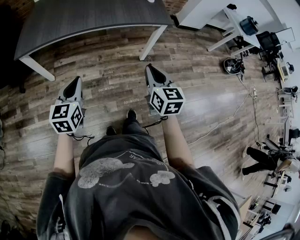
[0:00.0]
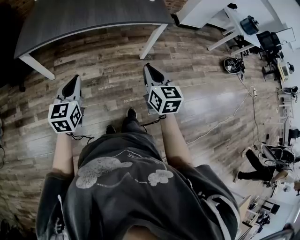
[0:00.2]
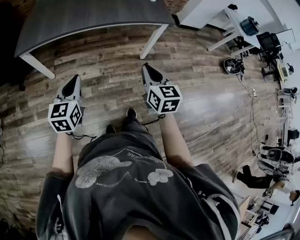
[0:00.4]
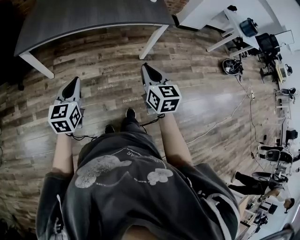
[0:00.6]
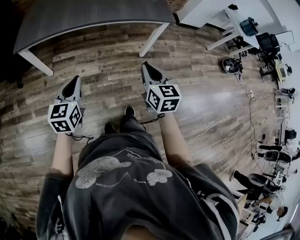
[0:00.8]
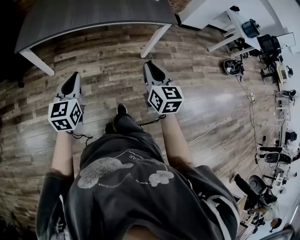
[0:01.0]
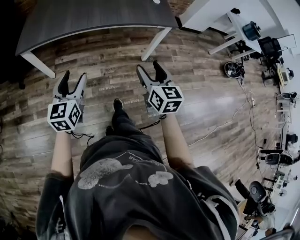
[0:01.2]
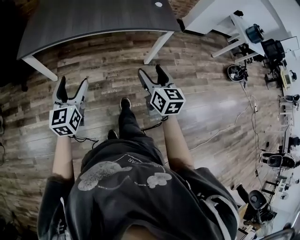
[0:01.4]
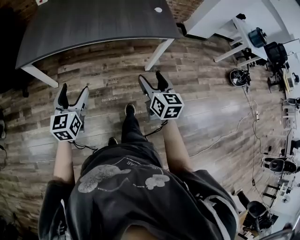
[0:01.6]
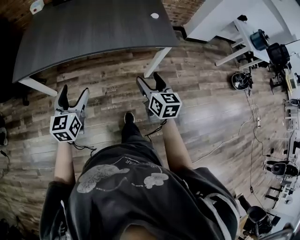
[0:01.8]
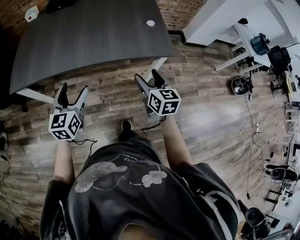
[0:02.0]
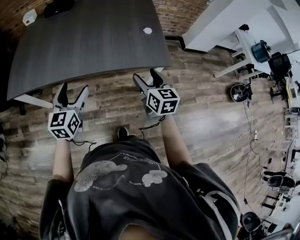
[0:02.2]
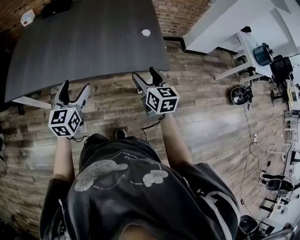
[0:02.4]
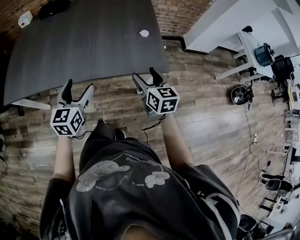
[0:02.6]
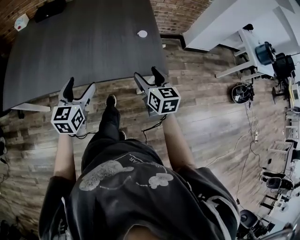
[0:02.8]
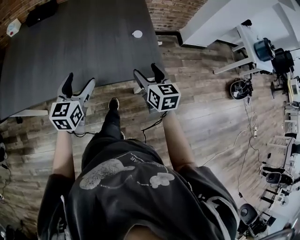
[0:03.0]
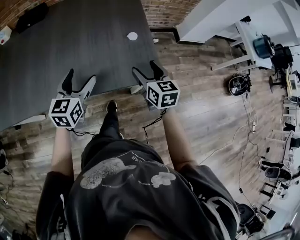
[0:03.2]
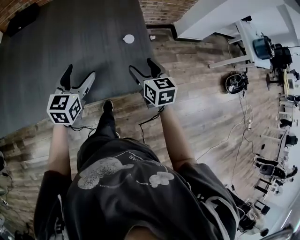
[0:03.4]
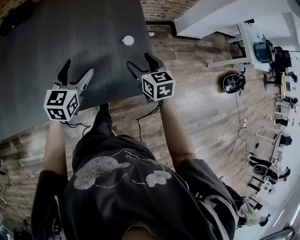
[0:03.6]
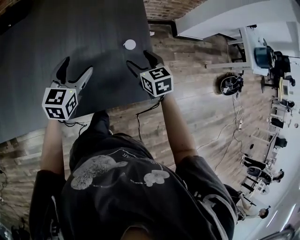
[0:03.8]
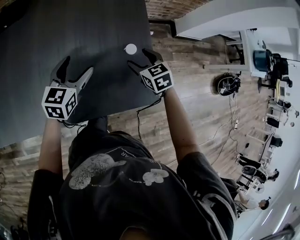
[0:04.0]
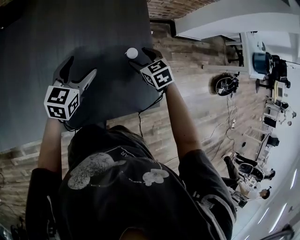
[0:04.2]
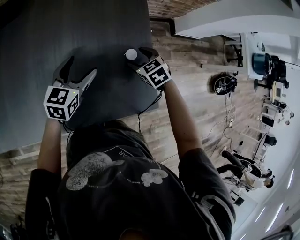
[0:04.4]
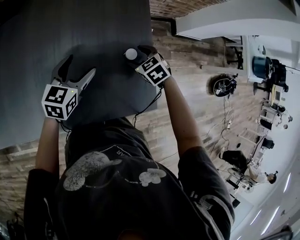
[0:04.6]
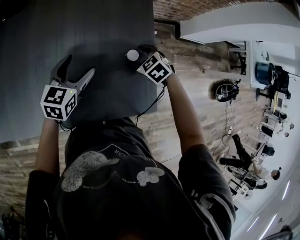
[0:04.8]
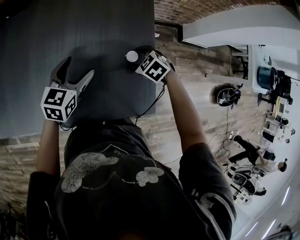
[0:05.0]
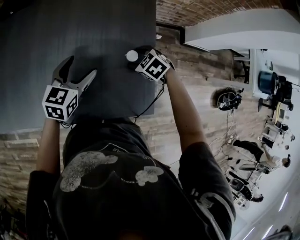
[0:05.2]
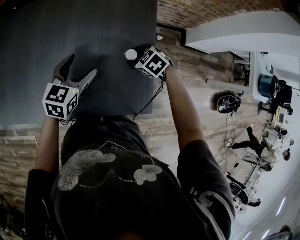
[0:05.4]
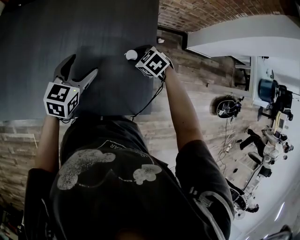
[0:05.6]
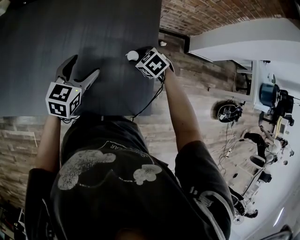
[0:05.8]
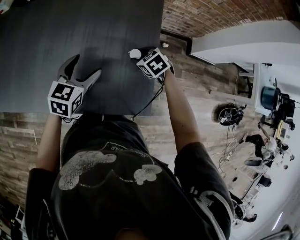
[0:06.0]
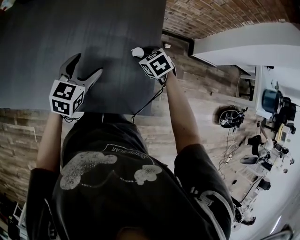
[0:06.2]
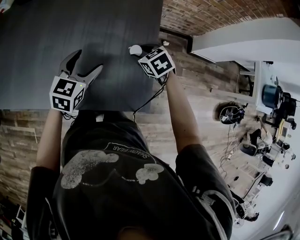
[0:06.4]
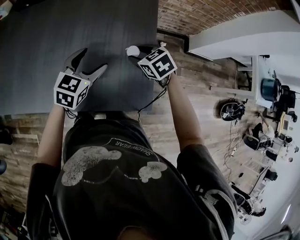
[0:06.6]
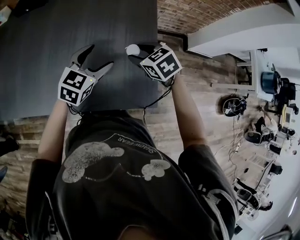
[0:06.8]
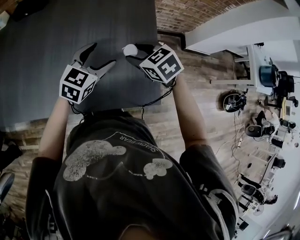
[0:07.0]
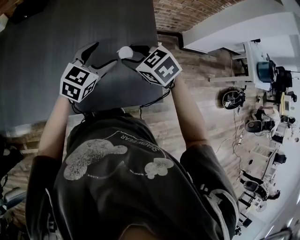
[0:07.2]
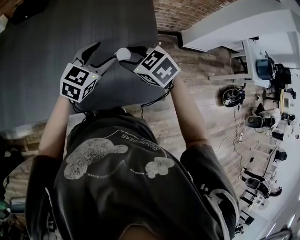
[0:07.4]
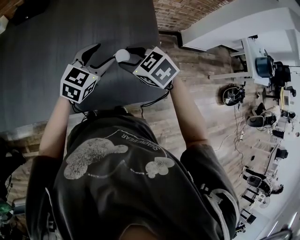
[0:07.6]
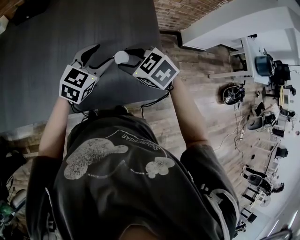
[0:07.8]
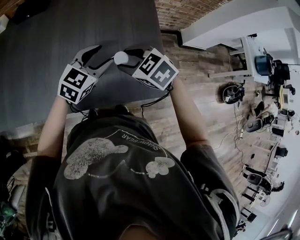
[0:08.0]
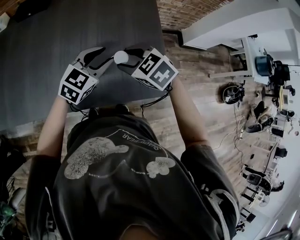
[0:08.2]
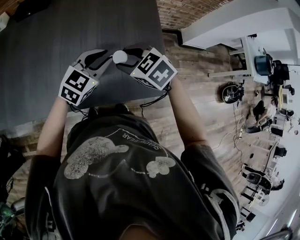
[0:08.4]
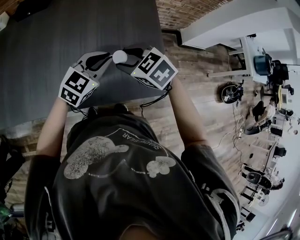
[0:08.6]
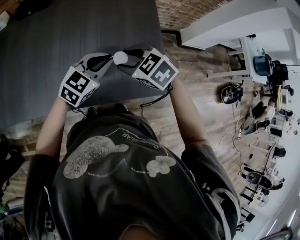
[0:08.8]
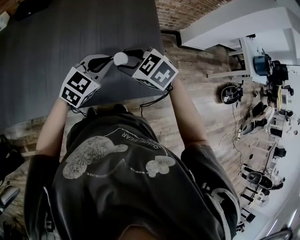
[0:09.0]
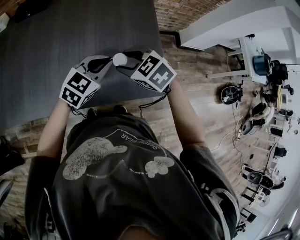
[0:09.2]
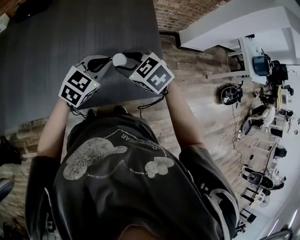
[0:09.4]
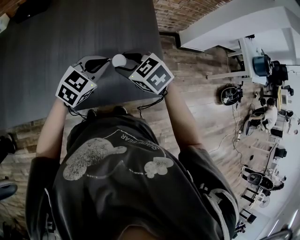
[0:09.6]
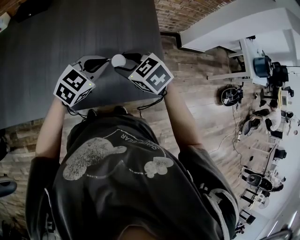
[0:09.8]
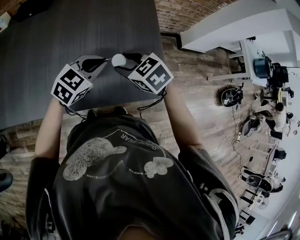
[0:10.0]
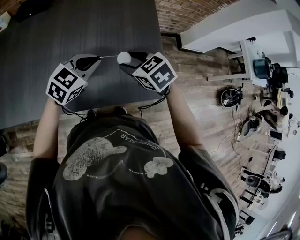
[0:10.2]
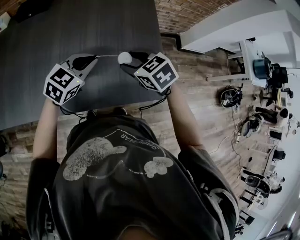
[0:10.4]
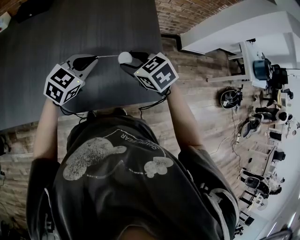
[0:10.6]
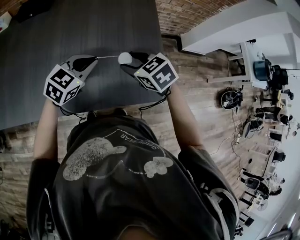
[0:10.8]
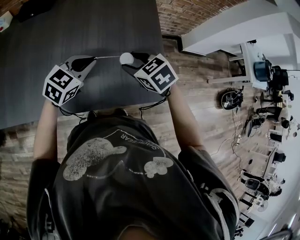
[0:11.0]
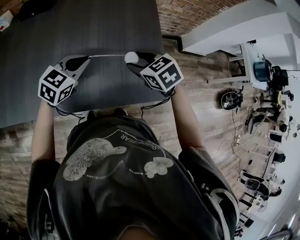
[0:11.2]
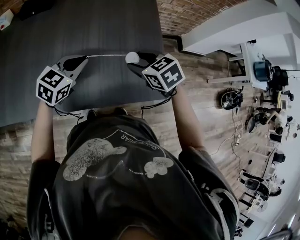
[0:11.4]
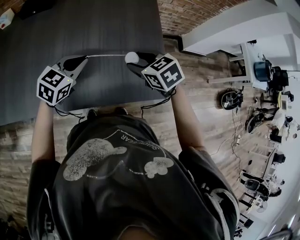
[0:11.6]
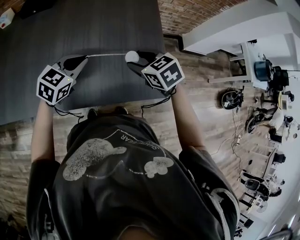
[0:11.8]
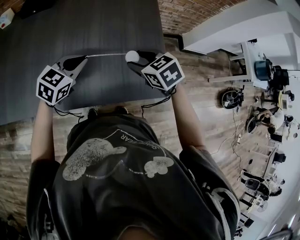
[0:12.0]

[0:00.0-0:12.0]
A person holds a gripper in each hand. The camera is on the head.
0:00.0 to 0:01.6: Both grippers move forward, approximately 10 cm. The right gripper opens up. Meanwhile the left gripper opens its fingers.
0:01.6 to 0:03.0: Both grippers move forward and to the right, about 40 cm.
0:03.0 to 0:04.4: The left gripper is displaced forward by roughly 30 cm. The right gripper travels forward and downward by roughly 35 cm, and angles its fingers downward, by some 30 degrees.
0:04.4 to 0:06.0: The left gripper is displaced backward by some 5 cm.
0:06.0 to 0:07.6: The left gripper is displaced upward by about 5 cm, and swivels approximately 20 degrees. The right gripper travels upward, to the left and backward by roughly 25 cm.
0:07.6 to 0:09.0: The left gripper heads backward, covering some 5 cm, and closes its fingers.
0:09.0 to 0:10.4: The left gripper is displaced to the left by some 5 cm.
0:10.4 to 0:12.0: There are only small adjustments of the grippers.

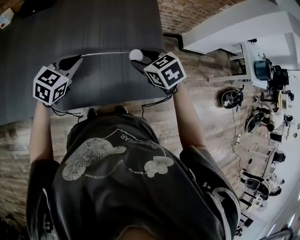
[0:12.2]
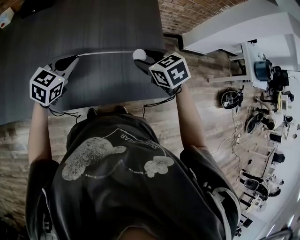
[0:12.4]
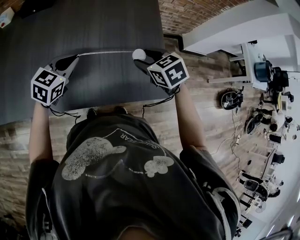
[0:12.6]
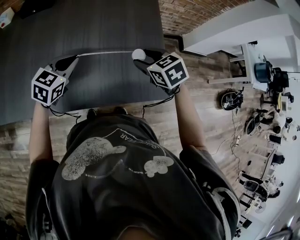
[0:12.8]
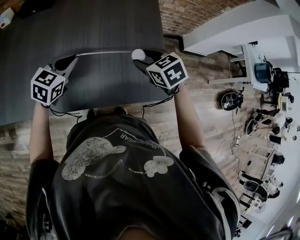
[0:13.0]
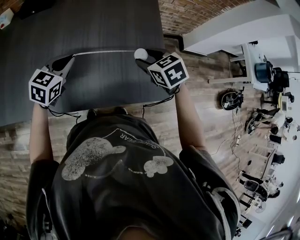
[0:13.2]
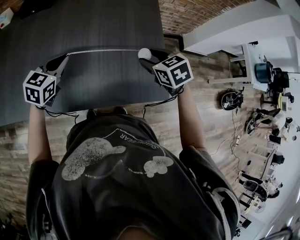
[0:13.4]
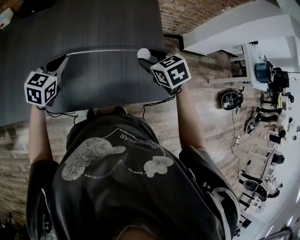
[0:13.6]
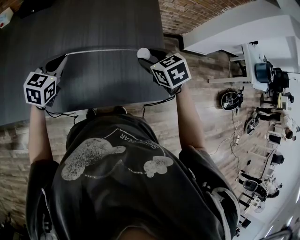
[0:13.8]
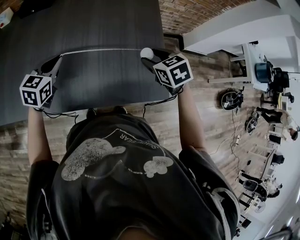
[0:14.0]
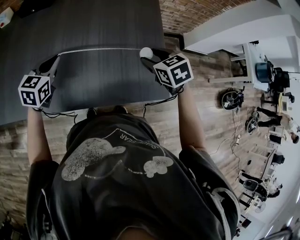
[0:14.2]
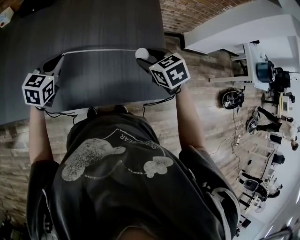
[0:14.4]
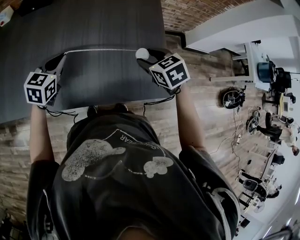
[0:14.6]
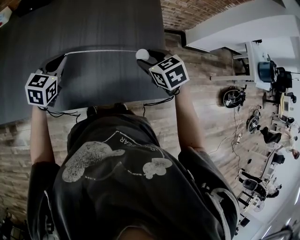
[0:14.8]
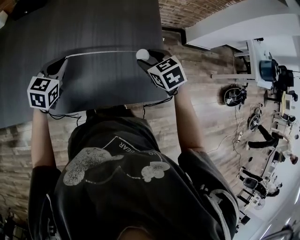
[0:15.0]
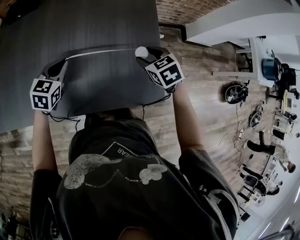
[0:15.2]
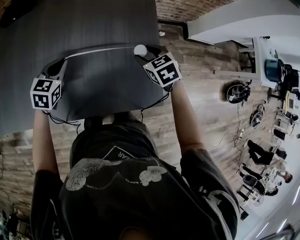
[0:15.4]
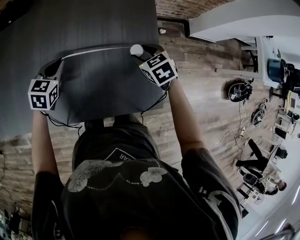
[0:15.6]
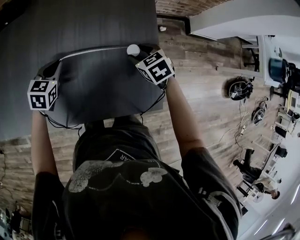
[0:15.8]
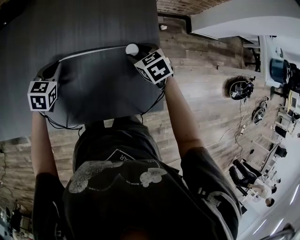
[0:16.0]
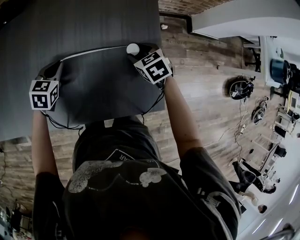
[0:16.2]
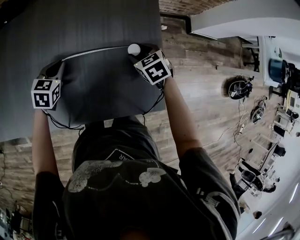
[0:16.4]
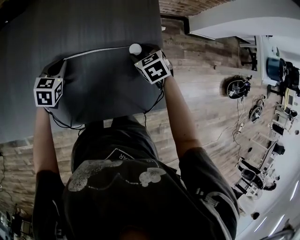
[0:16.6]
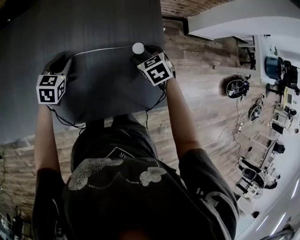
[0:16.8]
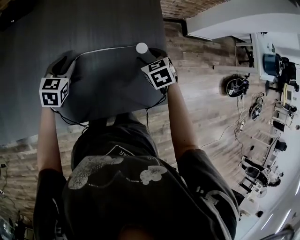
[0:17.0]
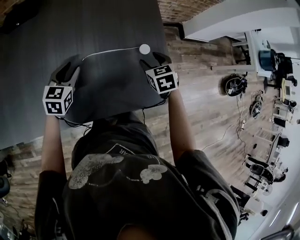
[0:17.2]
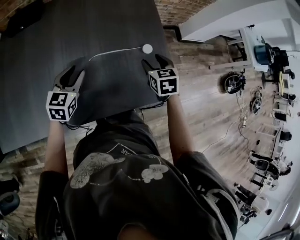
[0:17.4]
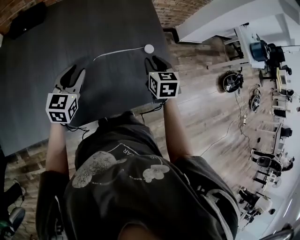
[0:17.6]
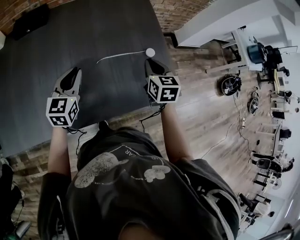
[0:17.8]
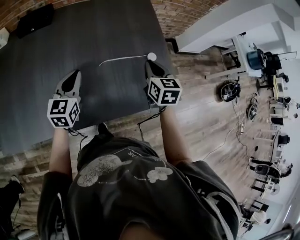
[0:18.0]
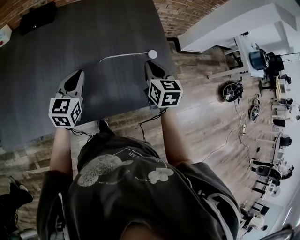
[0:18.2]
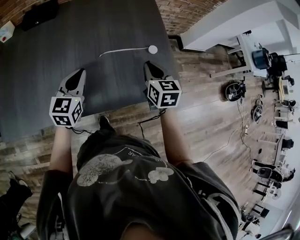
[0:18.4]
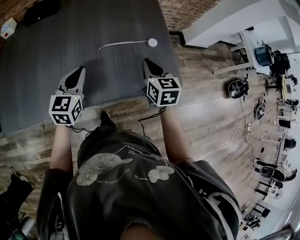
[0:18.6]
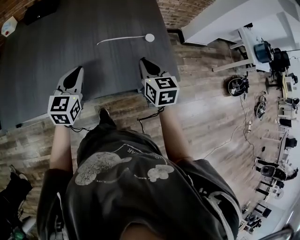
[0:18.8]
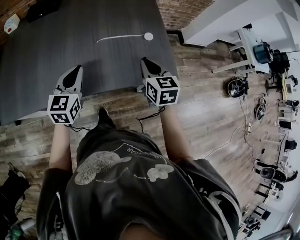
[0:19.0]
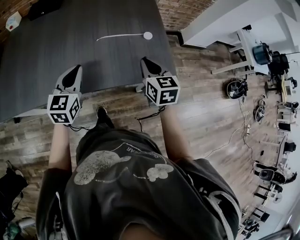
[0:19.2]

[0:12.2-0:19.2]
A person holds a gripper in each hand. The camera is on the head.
0:12.2 to 0:13.6: The left gripper goes roughly 5 cm to the left.
0:13.6 to 0:15.0: The right gripper moves some 5 cm.
0:15.0 to 0:16.4: The grippers both shift downward and forward by about 15 cm.
0:16.4 to 0:17.8: Both grippers move upward, backward and to the left, about 20 cm. The left gripper points its fingers about 30 degrees further upward. Meanwhile the right gripper turns by approximately 40 degrees, and closes up.
0:17.8 to 0:19.2: Both grippers move backward, about 15 cm.

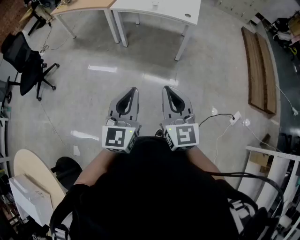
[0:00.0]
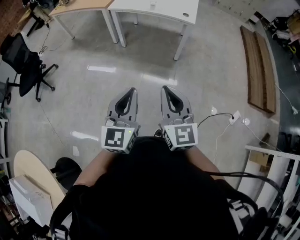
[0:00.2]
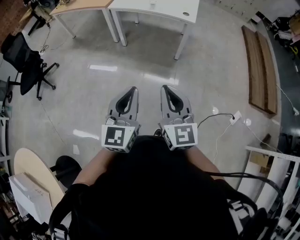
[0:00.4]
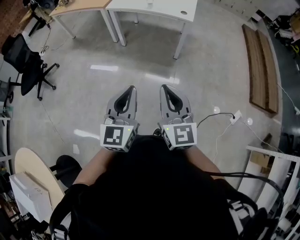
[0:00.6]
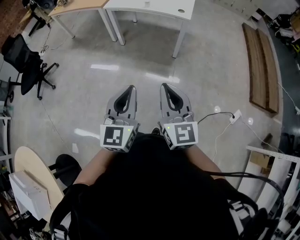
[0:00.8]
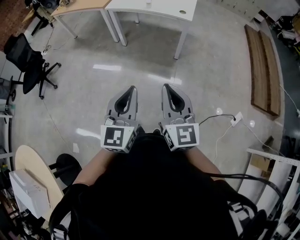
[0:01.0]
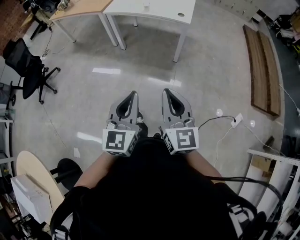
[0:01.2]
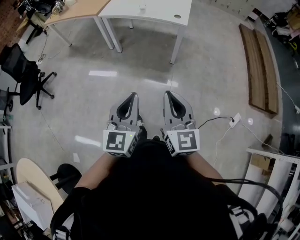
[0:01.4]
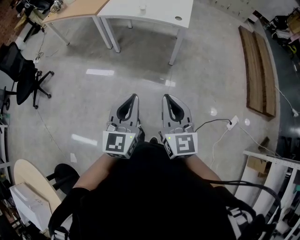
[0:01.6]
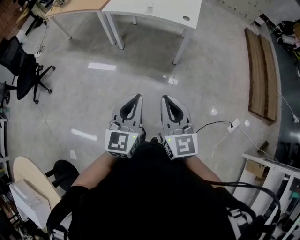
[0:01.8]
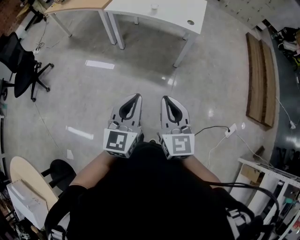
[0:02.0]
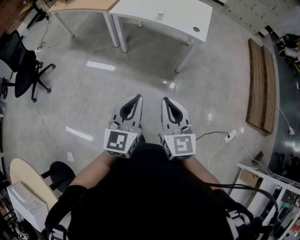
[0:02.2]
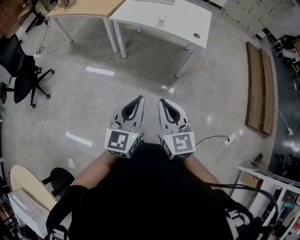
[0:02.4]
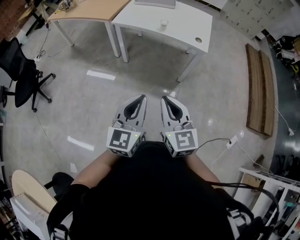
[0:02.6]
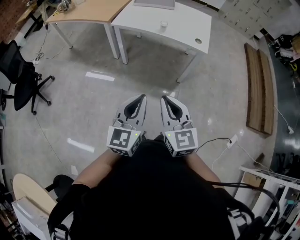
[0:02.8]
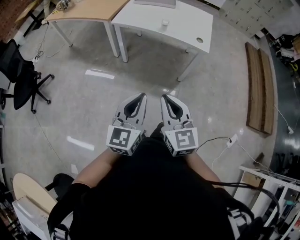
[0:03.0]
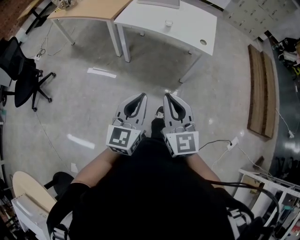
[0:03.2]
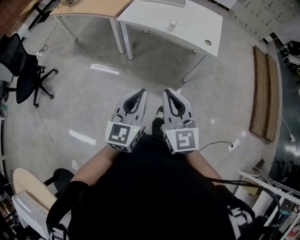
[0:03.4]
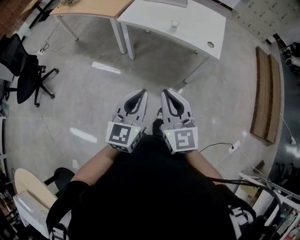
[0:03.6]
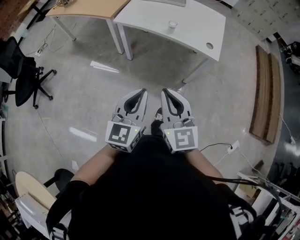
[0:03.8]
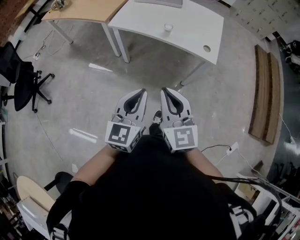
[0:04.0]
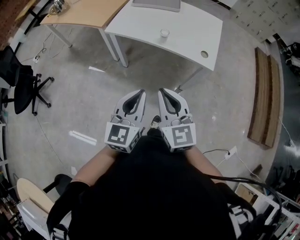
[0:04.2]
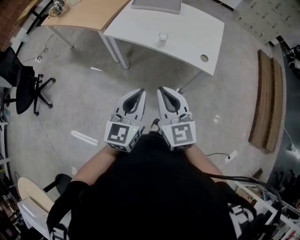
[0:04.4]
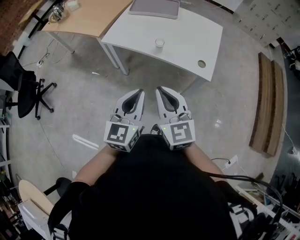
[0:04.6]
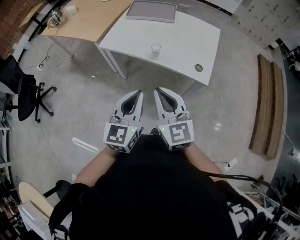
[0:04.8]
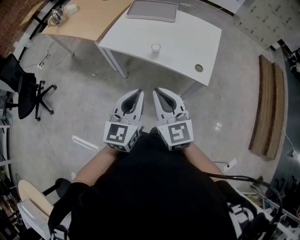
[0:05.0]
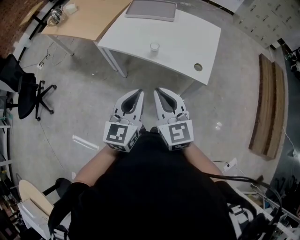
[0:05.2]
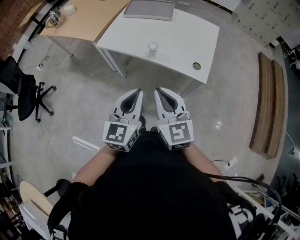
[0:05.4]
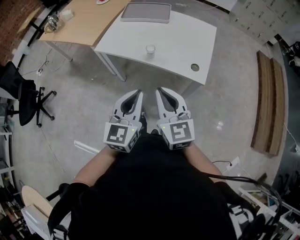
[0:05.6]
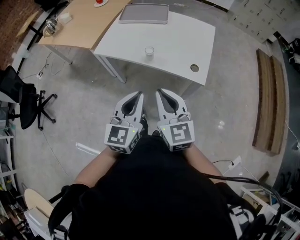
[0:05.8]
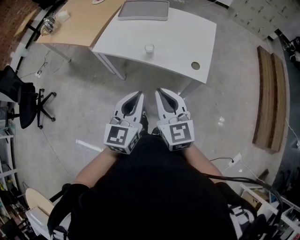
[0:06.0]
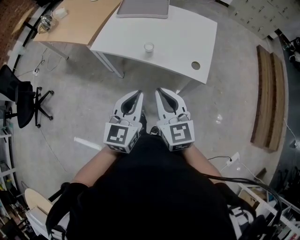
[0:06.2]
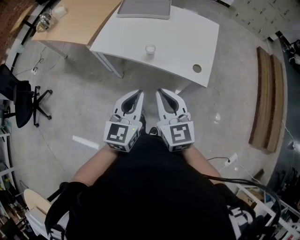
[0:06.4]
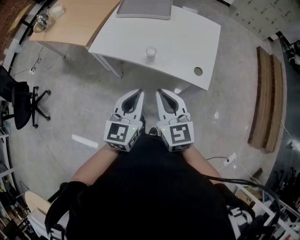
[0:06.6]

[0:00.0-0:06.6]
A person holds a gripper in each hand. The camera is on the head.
0:00.0 to 0:01.6: Both grippers travel together to the right and forward, about 10 cm.
0:01.6 to 0:03.2: Both grippers travel together forward and to the left, about 30 cm.
0:03.2 to 0:05.0: The right gripper shifts roughly 30 cm forward; the left gripper heads forward and to the right, covering approximately 35 cm.
0:05.0 to 0:06.6: The two grippers go about 10 cm forward.
